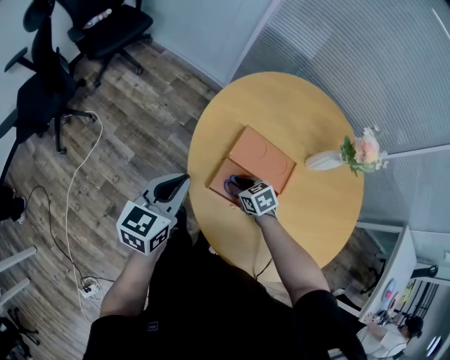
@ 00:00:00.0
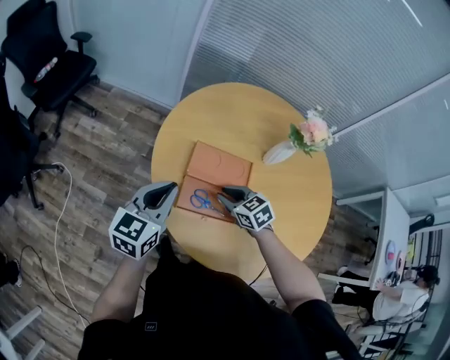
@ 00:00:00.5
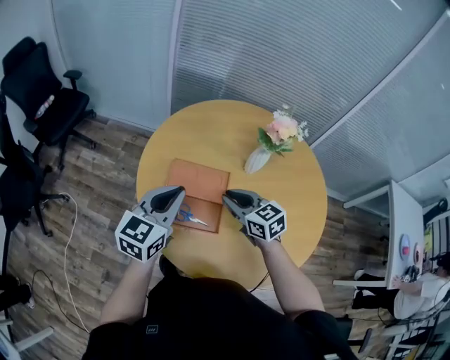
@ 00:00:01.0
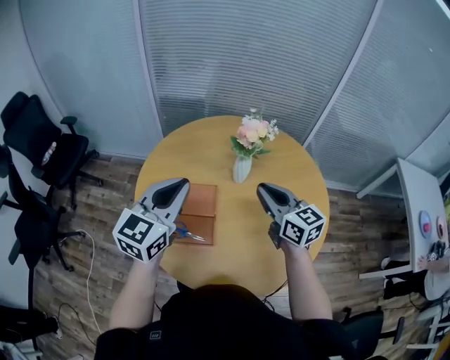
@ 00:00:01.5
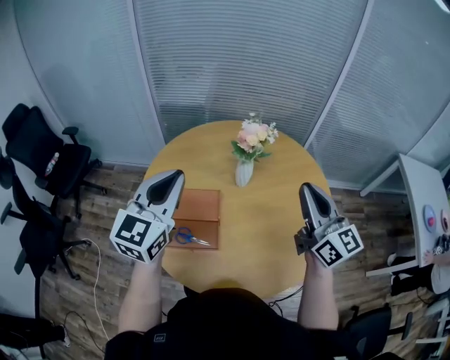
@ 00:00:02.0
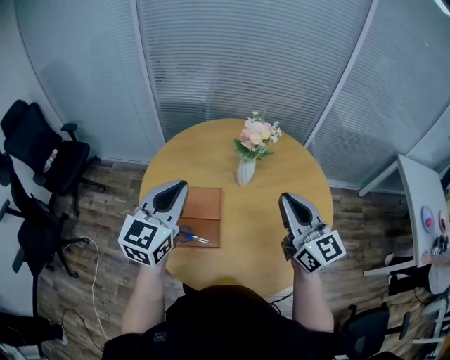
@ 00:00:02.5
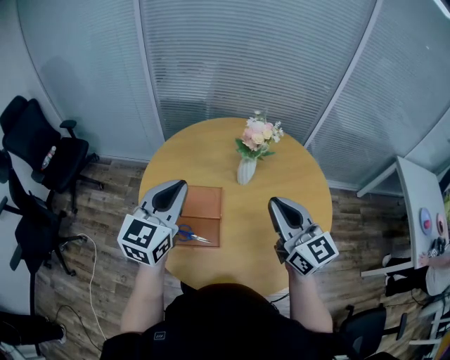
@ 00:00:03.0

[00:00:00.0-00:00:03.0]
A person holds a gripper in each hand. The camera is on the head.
00:00:00.0 to 00:00:01.5: The left gripper shifts by roughly 35 cm, and turns by about 30 degrees; the right gripper moves upward, approximately 35 cm, and tilts its fingers some 50 degrees upward.
00:00:01.5 to 00:00:03.0: The right gripper heads backward and upward, covering roughly 10 cm.

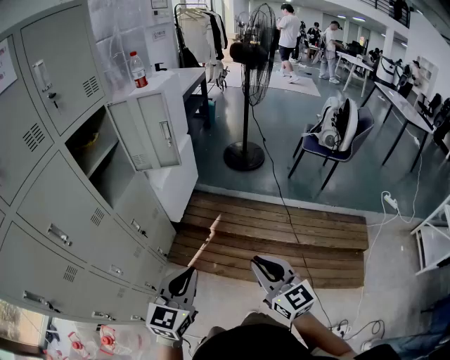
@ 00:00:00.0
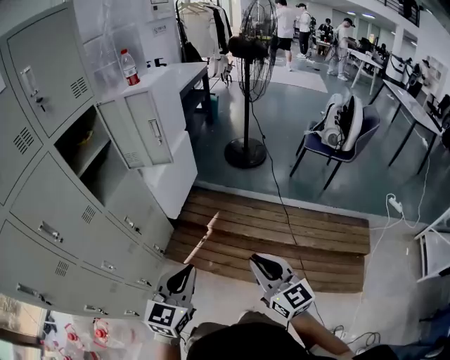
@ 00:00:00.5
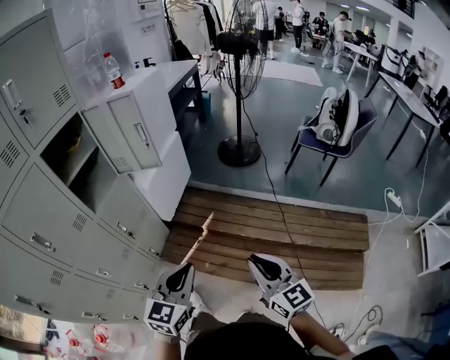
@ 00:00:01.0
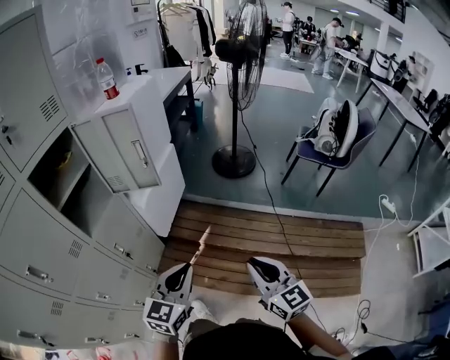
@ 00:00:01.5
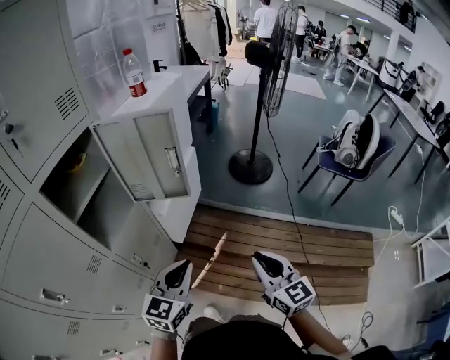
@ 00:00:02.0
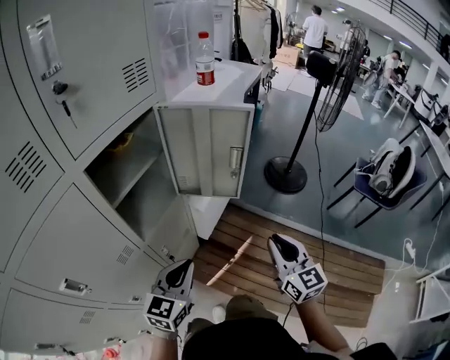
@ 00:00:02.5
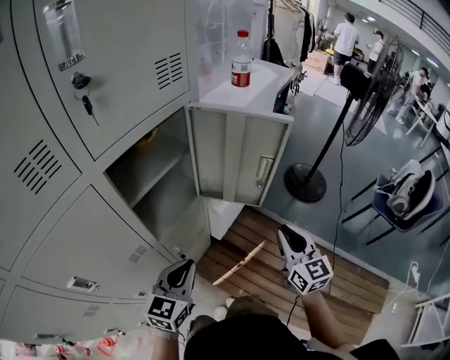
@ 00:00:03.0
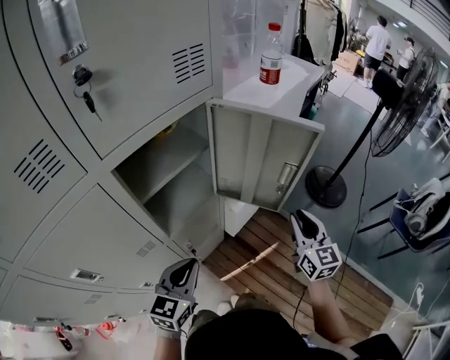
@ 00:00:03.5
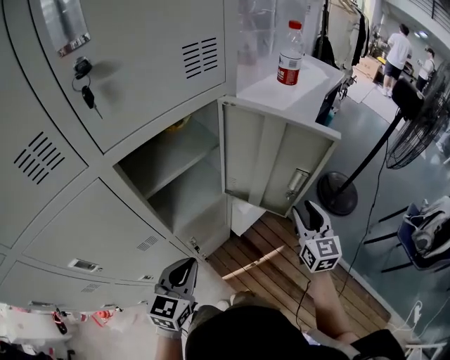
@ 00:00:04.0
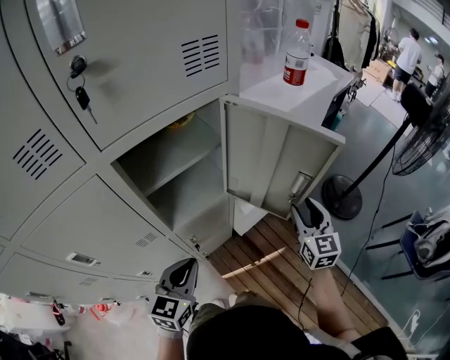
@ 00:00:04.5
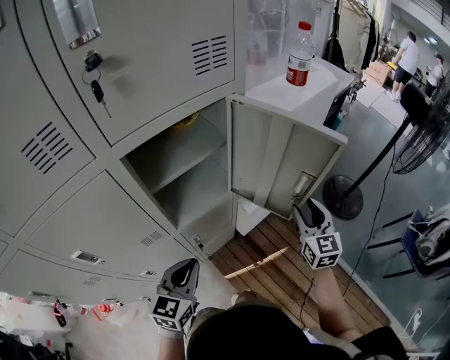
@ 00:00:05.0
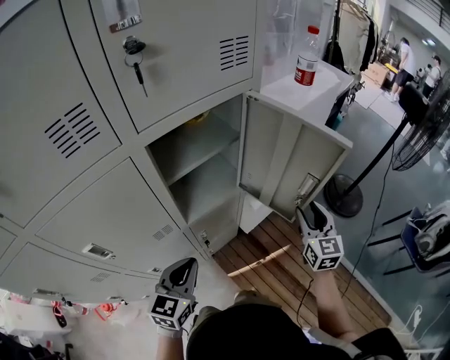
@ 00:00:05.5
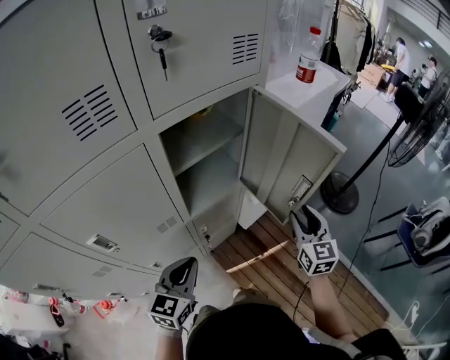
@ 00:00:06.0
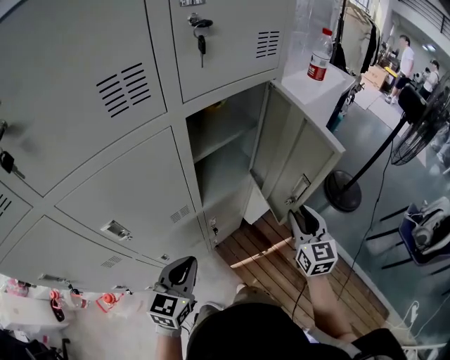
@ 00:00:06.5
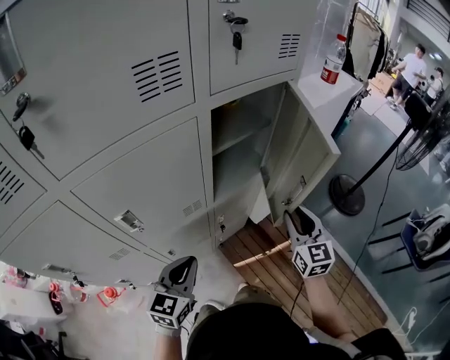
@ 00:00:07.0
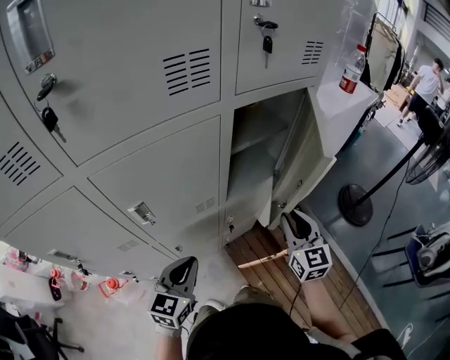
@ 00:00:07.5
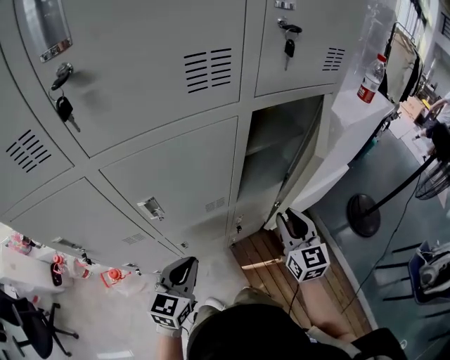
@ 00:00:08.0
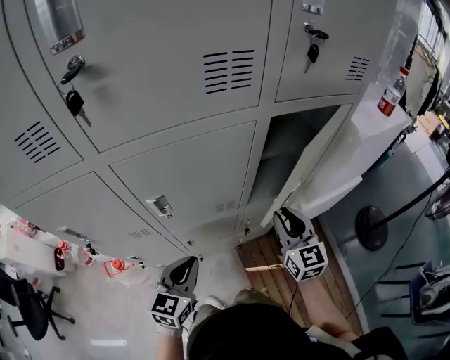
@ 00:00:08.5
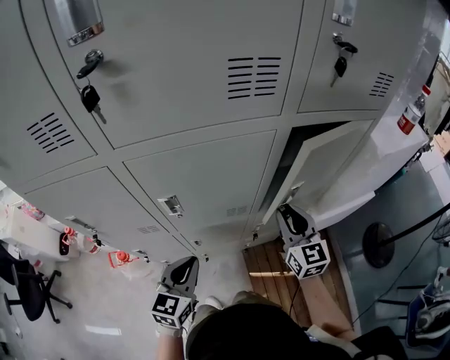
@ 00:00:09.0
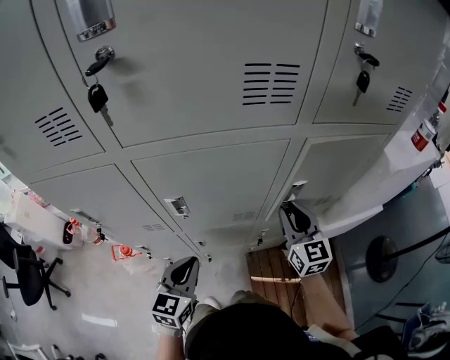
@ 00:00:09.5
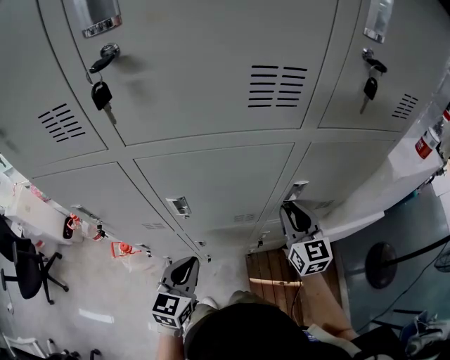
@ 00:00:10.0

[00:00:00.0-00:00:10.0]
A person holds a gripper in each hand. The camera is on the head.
00:00:00.0 to 00:00:02.0: Both grippers move forward, approximately 25 cm.
00:00:02.0 to 00:00:04.0: The left gripper shifts about 20 cm to the left and forward, and turns by roughly 30 degrees, while the right gripper travels forward by approximately 35 cm, and opens up.
00:00:04.0 to 00:00:06.0: The left gripper moves backward and to the left, about 10 cm. The right gripper is displaced to the left and backward by roughly 10 cm.
00:00:06.0 to 00:00:08.0: The left gripper shifts roughly 15 cm to the left and backward. The right gripper heads to the left, covering roughly 20 cm, and changes its angle by some 20 degrees.
00:00:08.0 to 00:00:10.0: The right gripper shifts about 15 cm forward and to the left.

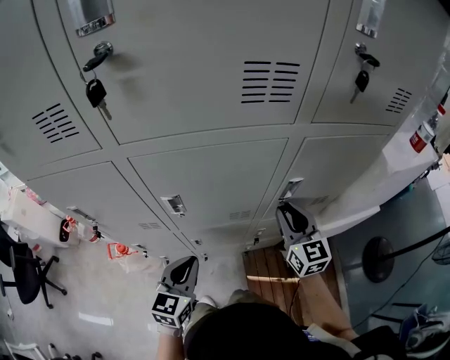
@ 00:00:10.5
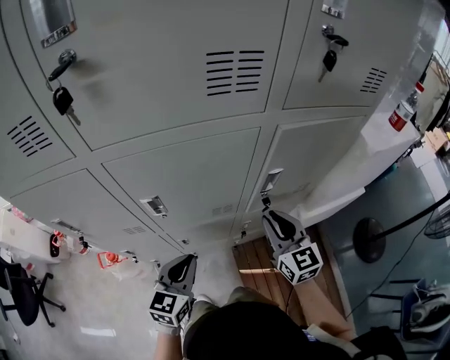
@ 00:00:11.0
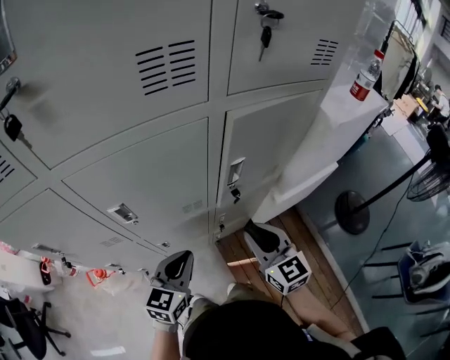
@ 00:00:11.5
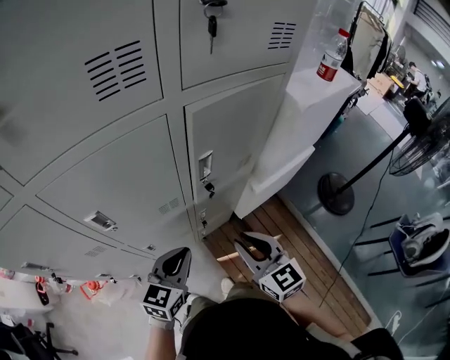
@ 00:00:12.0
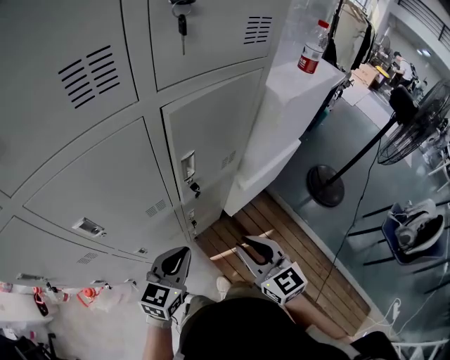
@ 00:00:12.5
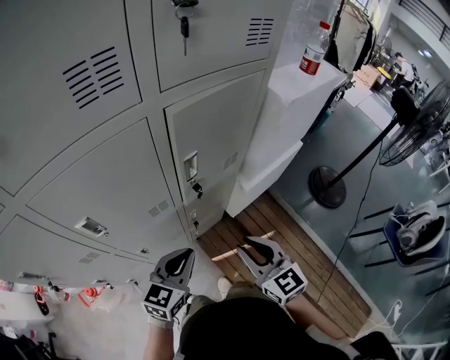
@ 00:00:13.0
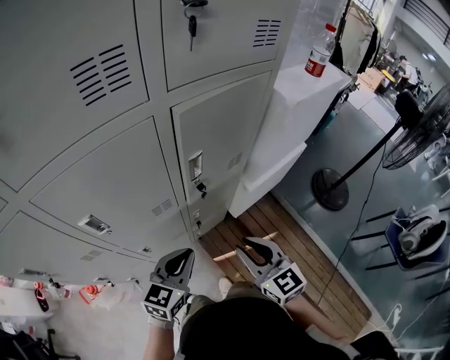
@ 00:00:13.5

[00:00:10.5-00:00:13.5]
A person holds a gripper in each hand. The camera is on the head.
00:00:10.5 to 00:00:12.0: The right gripper is displaced backward by about 15 cm. The left gripper shifts approximately 15 cm to the right, and swivels approximately 30 degrees.
00:00:12.0 to 00:00:13.5: The grippers make only small movements.

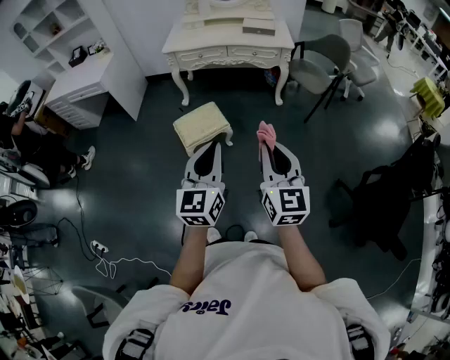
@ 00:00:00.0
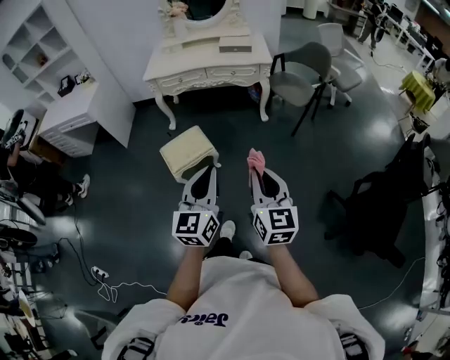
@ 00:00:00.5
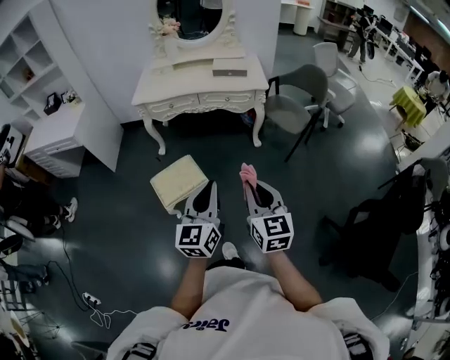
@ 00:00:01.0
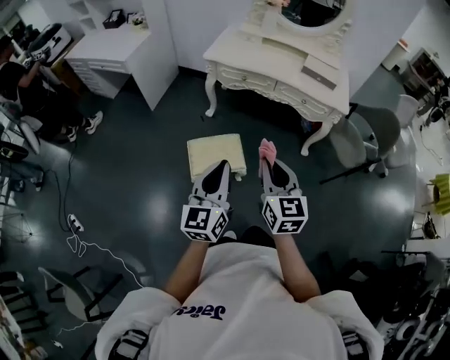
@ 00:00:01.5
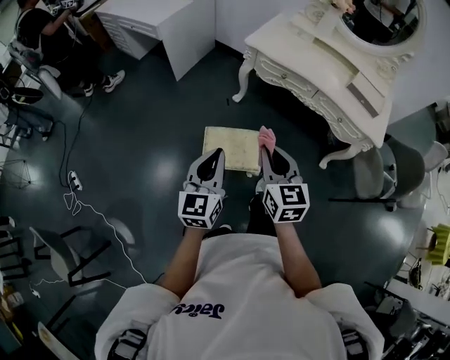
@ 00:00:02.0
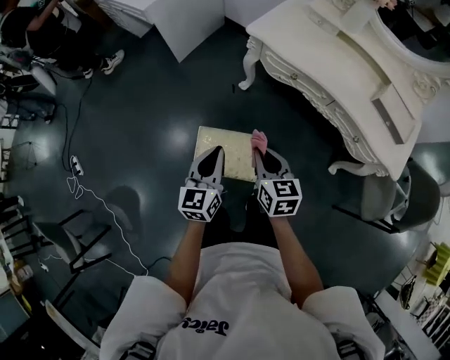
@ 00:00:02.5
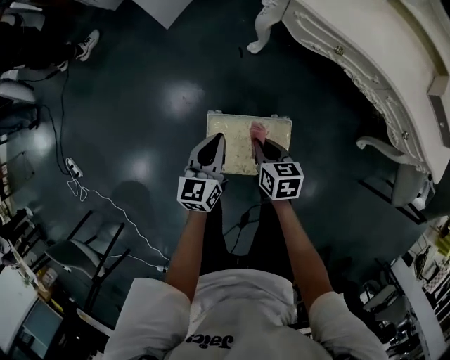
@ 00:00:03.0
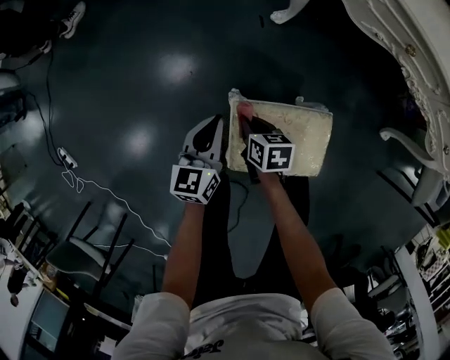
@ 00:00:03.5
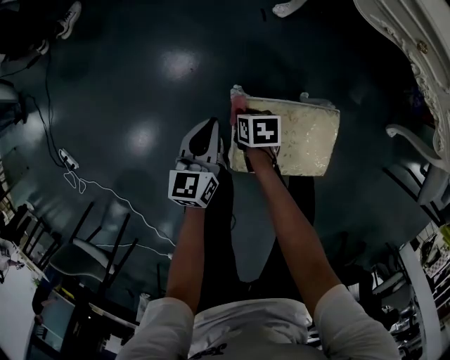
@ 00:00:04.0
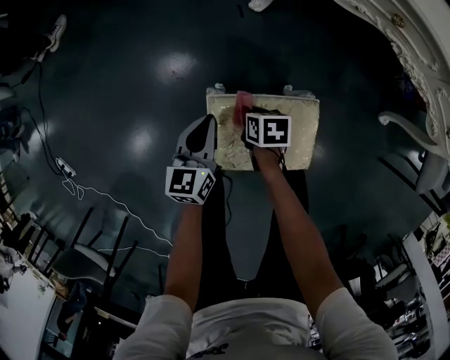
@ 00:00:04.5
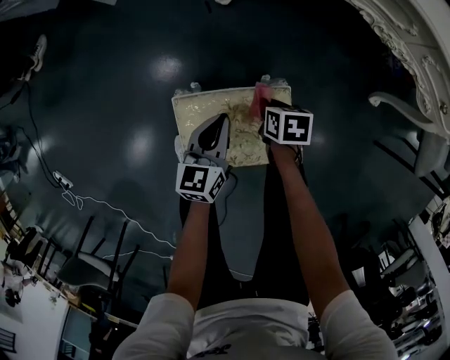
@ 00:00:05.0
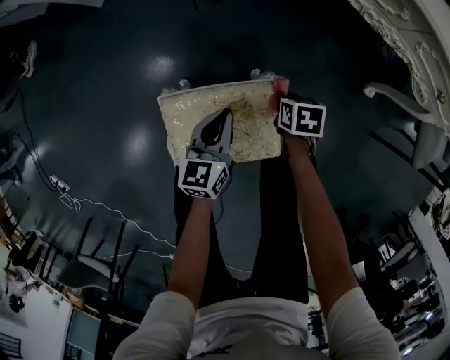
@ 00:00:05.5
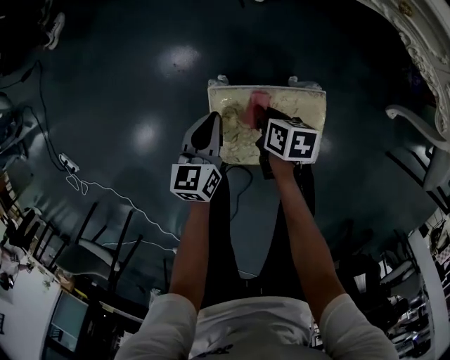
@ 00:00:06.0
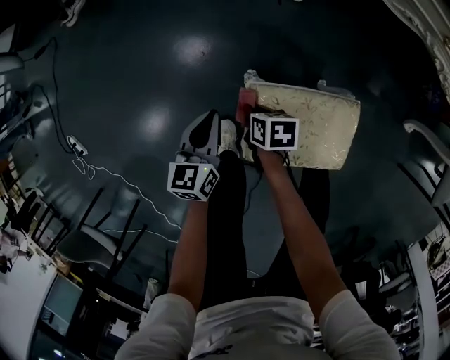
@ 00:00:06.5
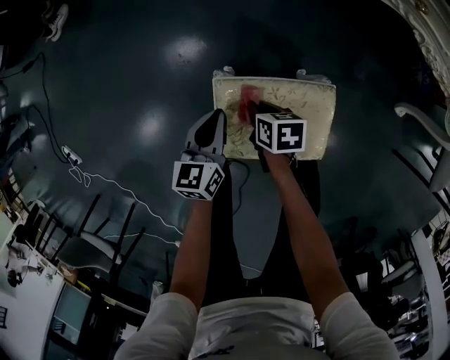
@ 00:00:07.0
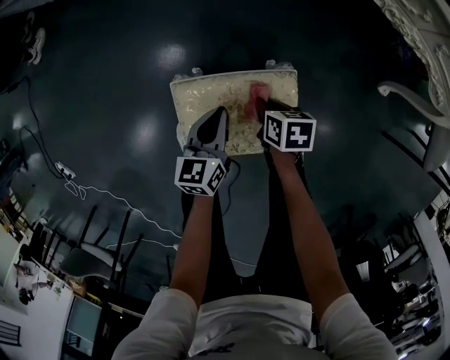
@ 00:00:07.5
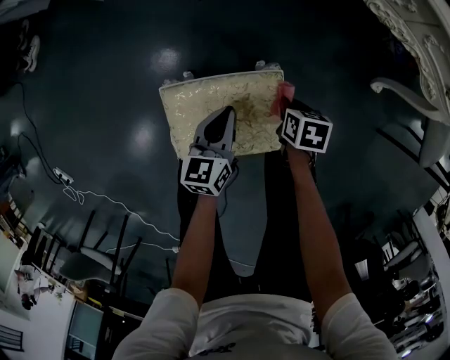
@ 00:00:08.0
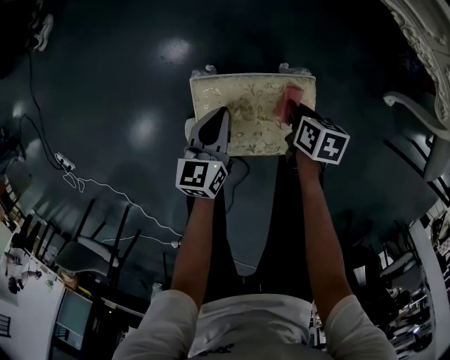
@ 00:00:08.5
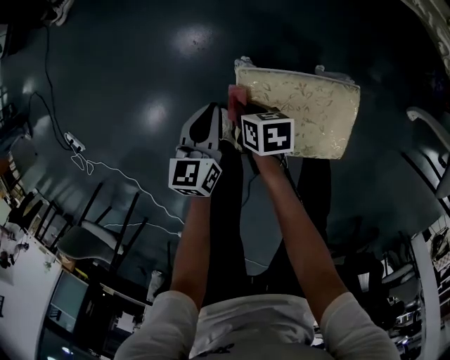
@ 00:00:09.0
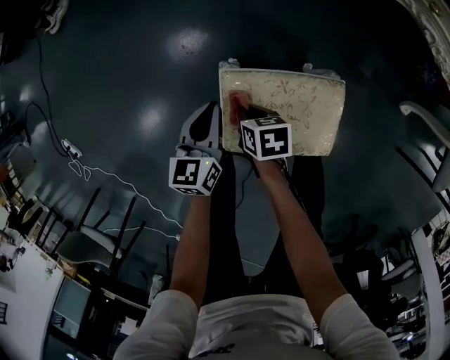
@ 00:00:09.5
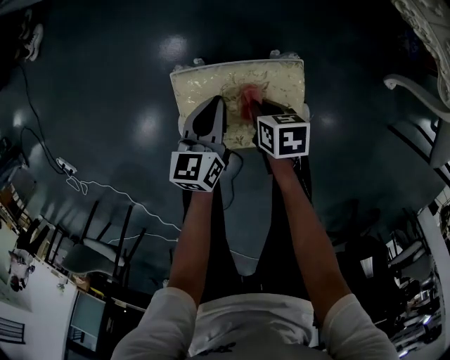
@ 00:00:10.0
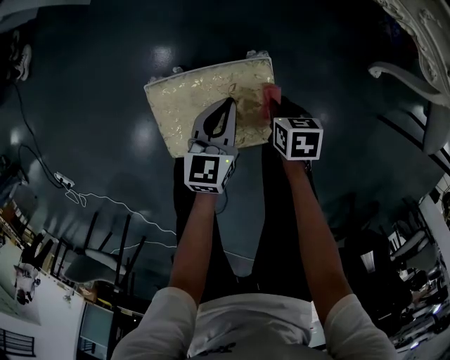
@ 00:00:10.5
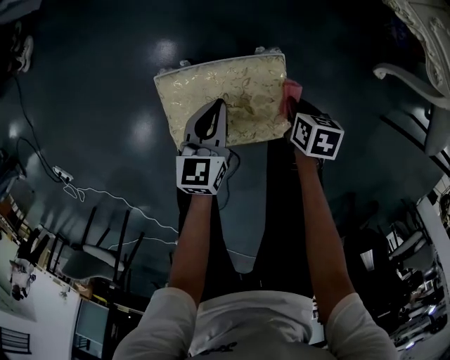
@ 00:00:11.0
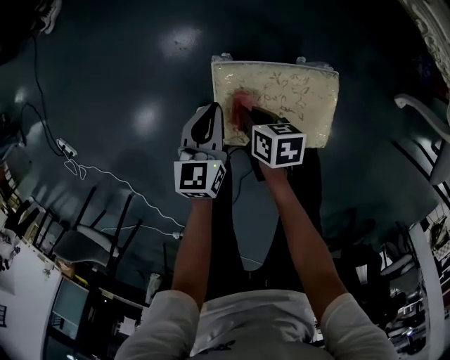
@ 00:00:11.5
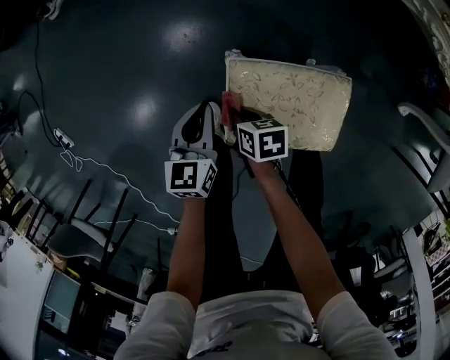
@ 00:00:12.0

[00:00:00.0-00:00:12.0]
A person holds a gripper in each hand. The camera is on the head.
00:00:00.0 to 00:00:02.0: The right gripper ends up some 50 cm from where it was, and changes its angle by roughly 40 degrees, while the left gripper shifts by about 40 cm, and changes its angle by approximately 30 degrees.
00:00:02.0 to 00:00:04.0: Both grippers move downward and forward, about 60 cm. The left gripper changes its angle by roughly 20 degrees; the right gripper angles its fingers downward, by approximately 40 degrees.
00:00:04.0 to 00:00:06.0: The right gripper goes about 10 cm to the right. Meanwhile the left gripper moves roughly 25 cm to the right and comes back.
00:00:06.0 to 00:00:08.0: The left gripper moves roughly 15 cm. Meanwhile the right gripper shifts by approximately 20 cm.
00:00:10.0 to 00:00:12.0: The left gripper shifts by roughly 15 cm. Meanwhile the right gripper ends up about 20 cm from where it was.
